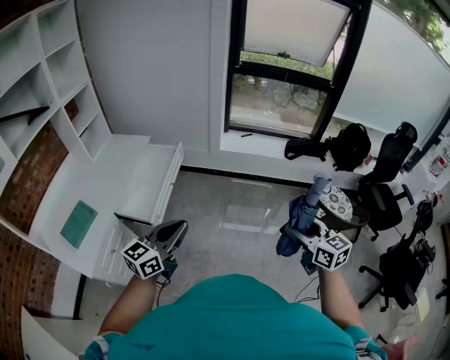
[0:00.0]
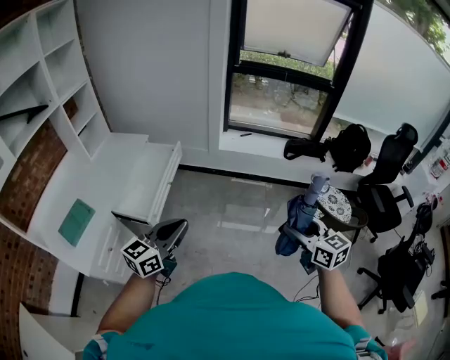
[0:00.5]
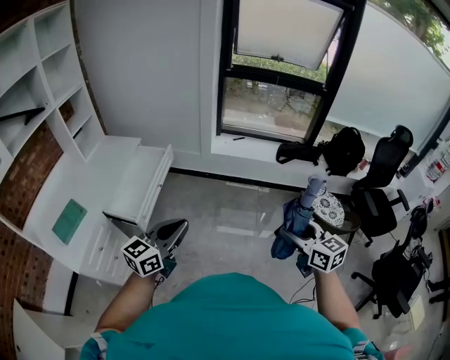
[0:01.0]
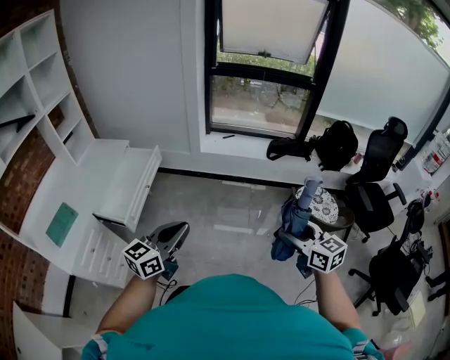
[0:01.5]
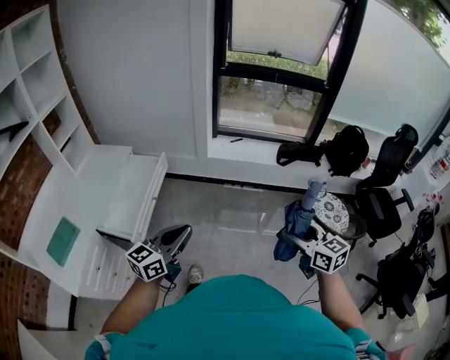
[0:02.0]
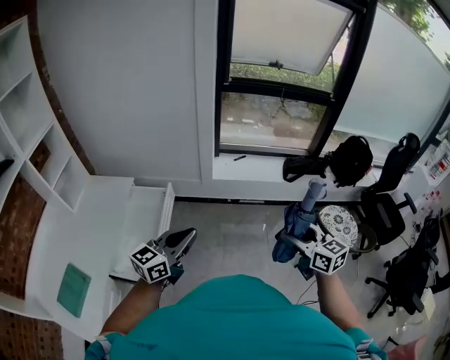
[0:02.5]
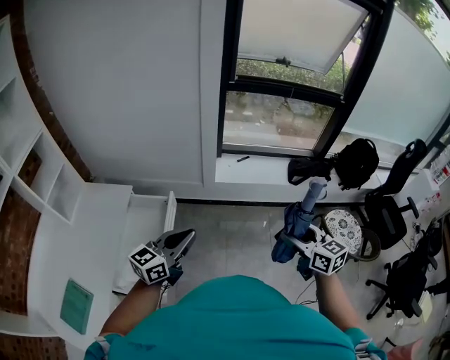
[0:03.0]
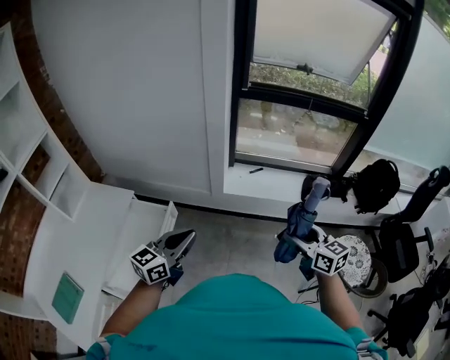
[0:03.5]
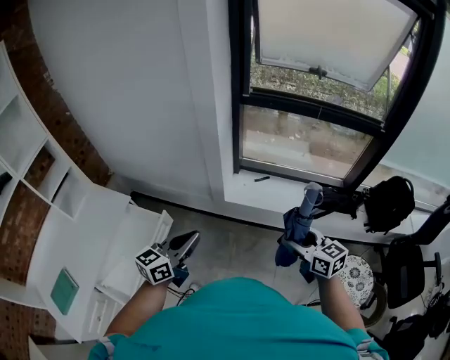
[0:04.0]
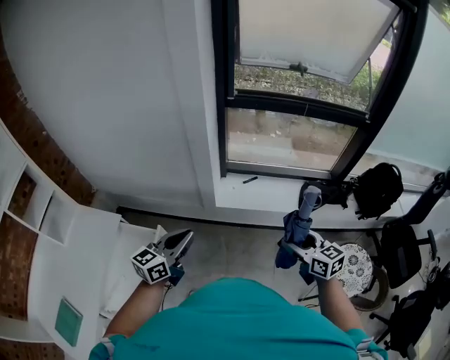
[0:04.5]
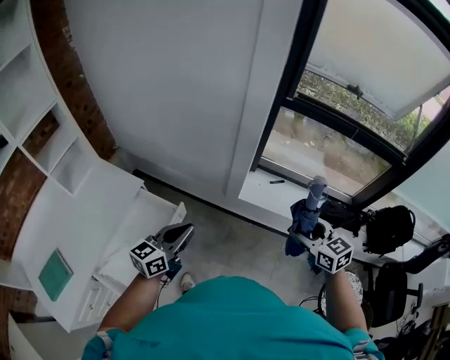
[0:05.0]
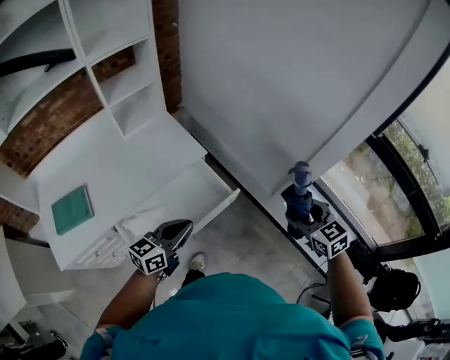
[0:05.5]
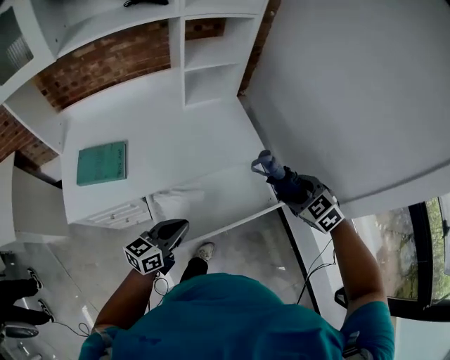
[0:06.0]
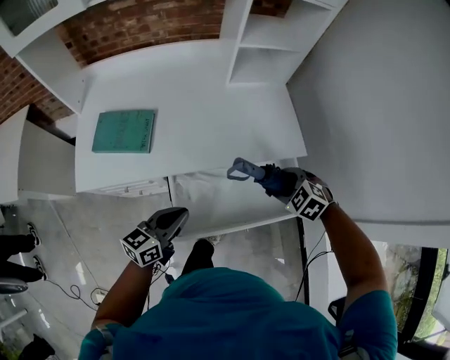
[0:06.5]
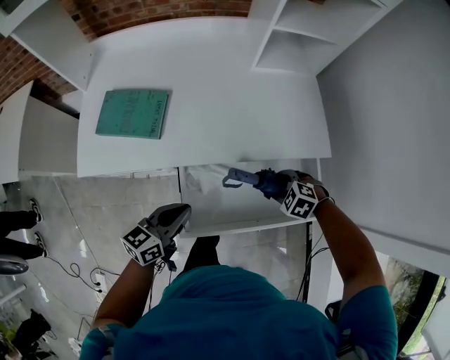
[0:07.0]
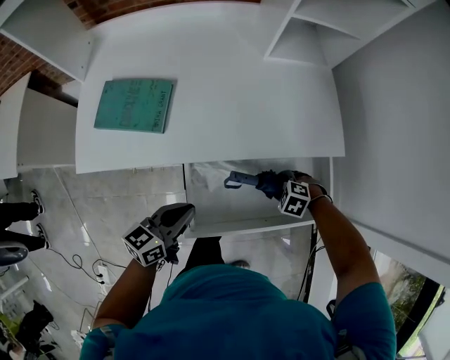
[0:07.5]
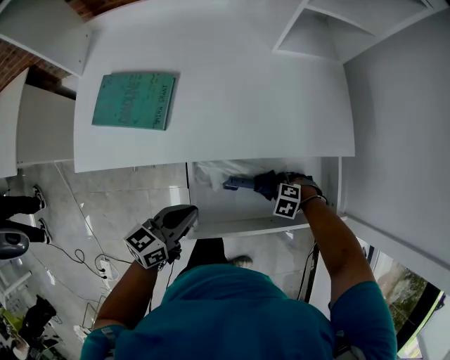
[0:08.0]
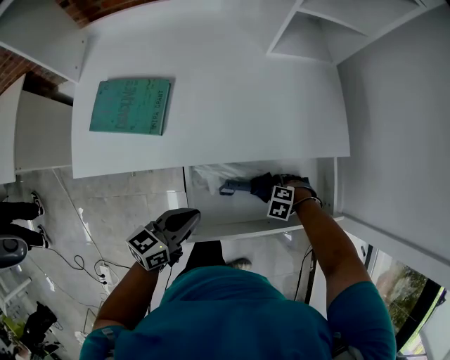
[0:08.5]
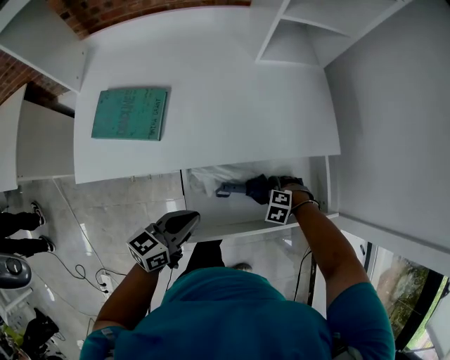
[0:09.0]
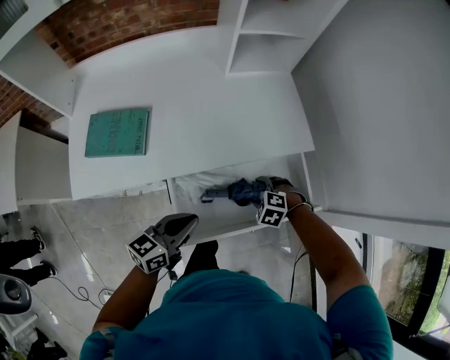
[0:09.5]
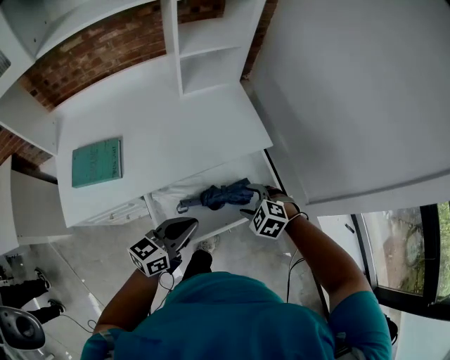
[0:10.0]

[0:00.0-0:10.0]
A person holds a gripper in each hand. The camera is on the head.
0:00.0 to 0:02.0: Both grippers move forward and to the right, some 10 cm.
0:02.0 to 0:04.0: The two grippers travel together, forward, some 40 cm.
0:04.0 to 0:06.0: Both grippers are carried roughly 50 cm. The left gripper rotates approximately 50 degrees. Meanwhile the right gripper tips its fingers downward by some 30 degrees.
0:06.0 to 0:08.0: The left gripper ends up some 15 cm from where it was, while the right gripper goes roughly 35 cm downward, and tilts its fingers roughly 40 degrees downward.
0:08.0 to 0:10.0: The left gripper changes place by some 20 cm, and swivels about 20 degrees. The right gripper travels upward by roughly 20 cm, and turns by about 40 degrees.

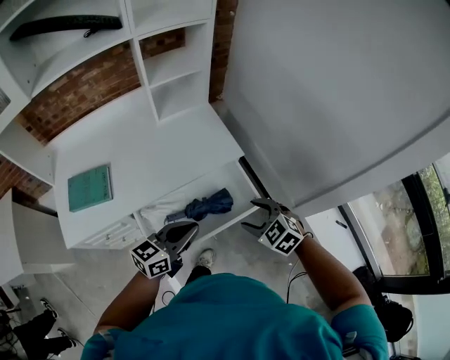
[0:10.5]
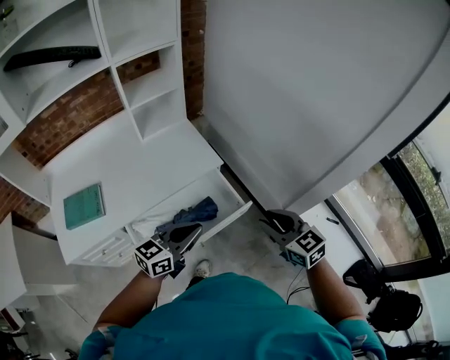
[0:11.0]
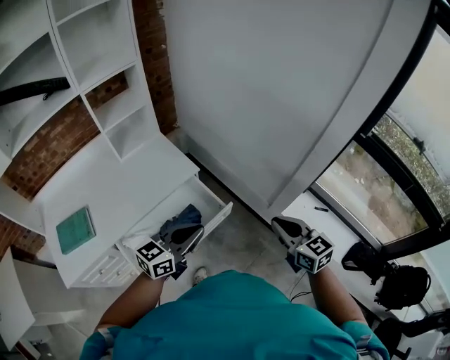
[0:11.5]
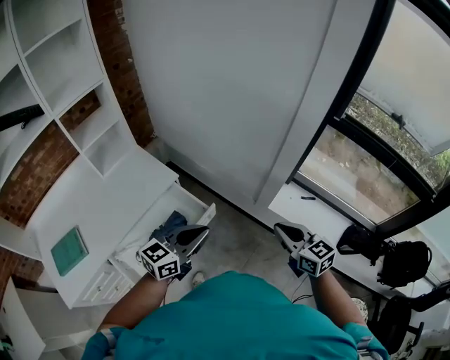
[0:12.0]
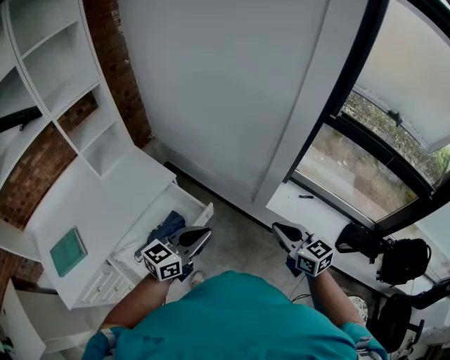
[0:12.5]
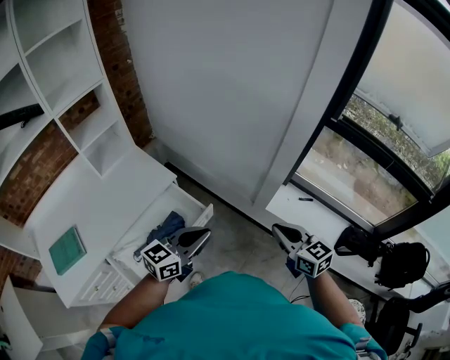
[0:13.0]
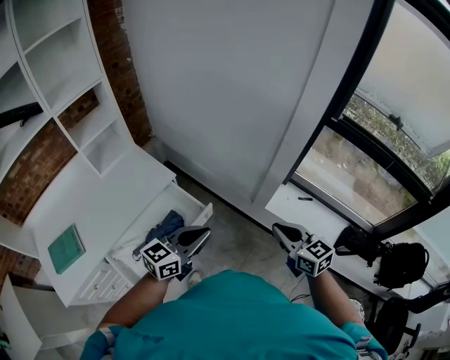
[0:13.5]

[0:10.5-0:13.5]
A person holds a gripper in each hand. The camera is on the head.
0:10.5 to 0:12.0: The left gripper shifts by some 25 cm, and swivels about 30 degrees, while the right gripper shifts by some 30 cm, points its fingers approximately 30 degrees further upward, and closes.
0:12.0 to 0:13.5: The grippers stay close to where they were, moving slightly.

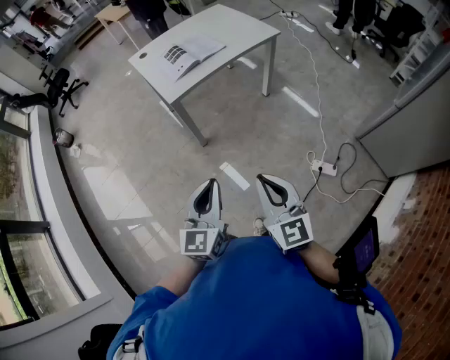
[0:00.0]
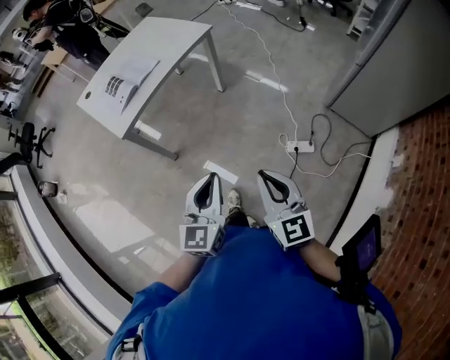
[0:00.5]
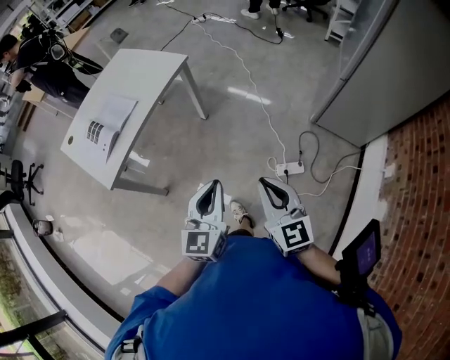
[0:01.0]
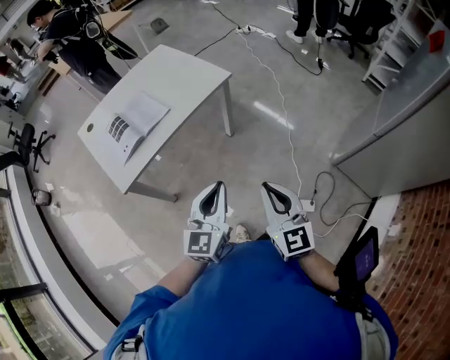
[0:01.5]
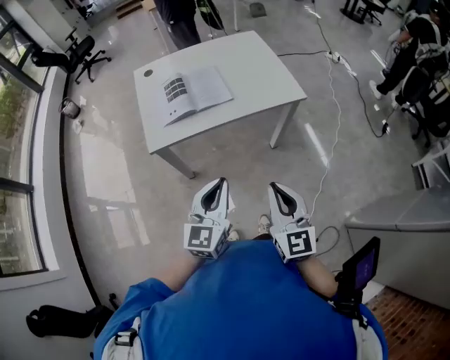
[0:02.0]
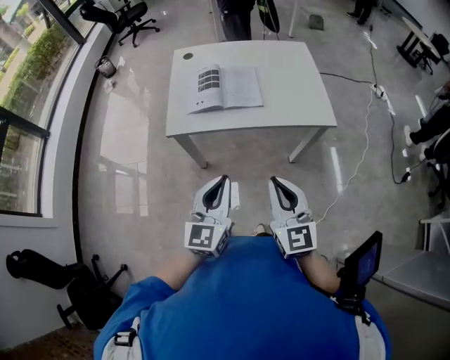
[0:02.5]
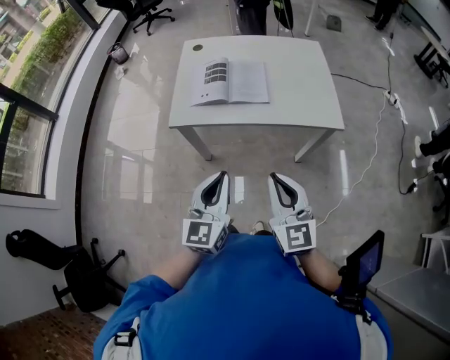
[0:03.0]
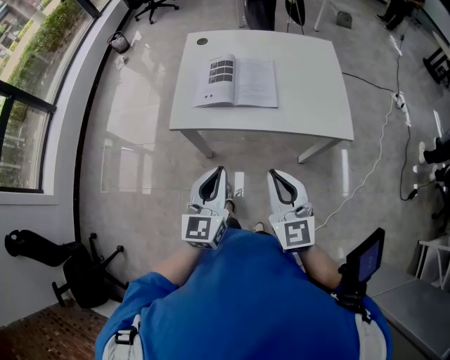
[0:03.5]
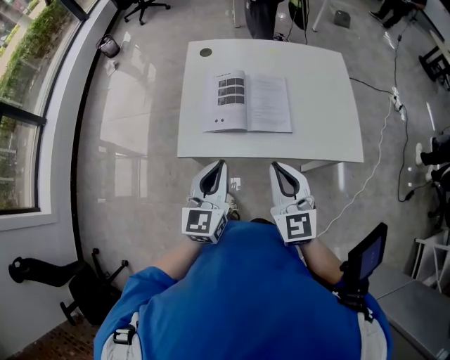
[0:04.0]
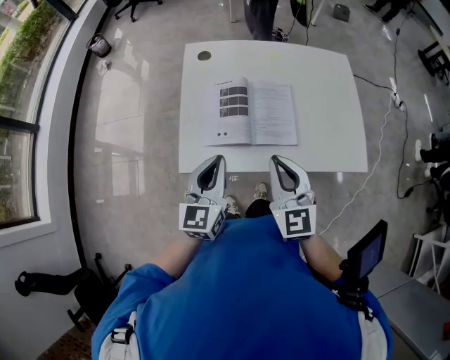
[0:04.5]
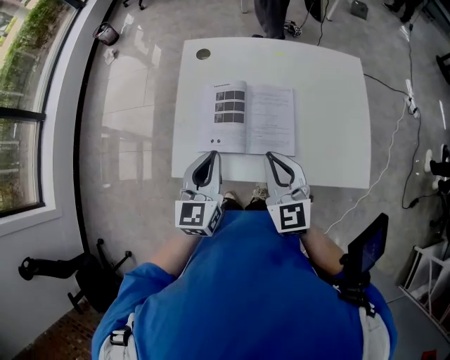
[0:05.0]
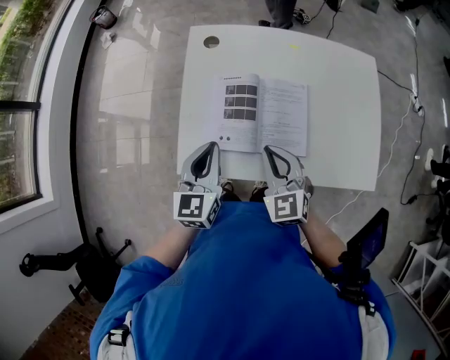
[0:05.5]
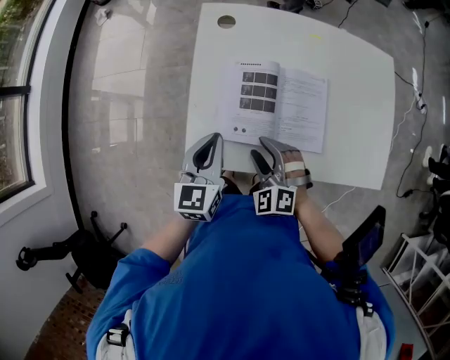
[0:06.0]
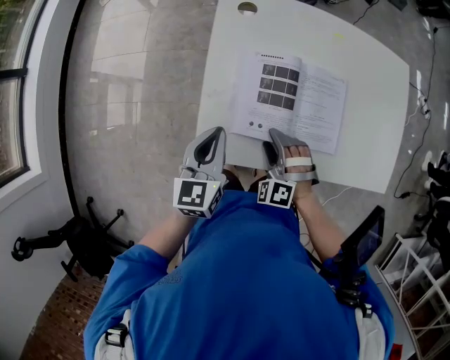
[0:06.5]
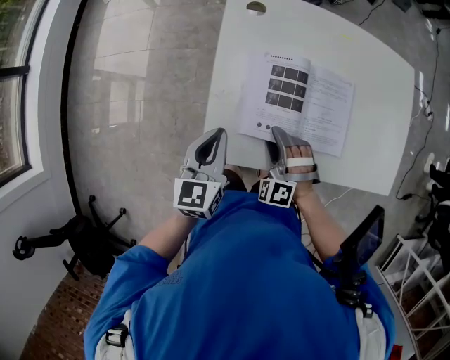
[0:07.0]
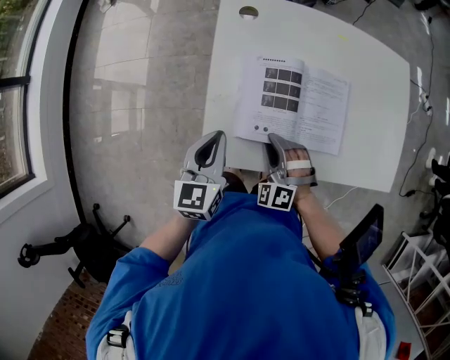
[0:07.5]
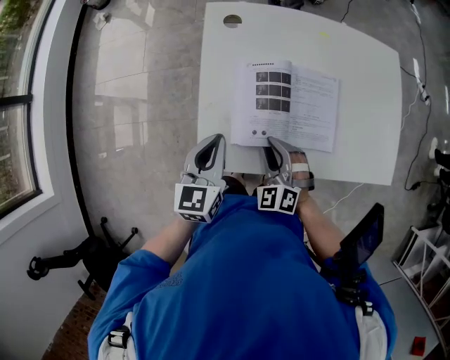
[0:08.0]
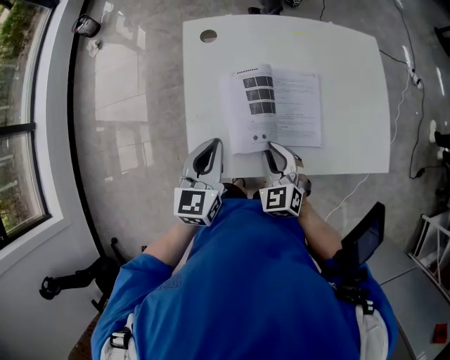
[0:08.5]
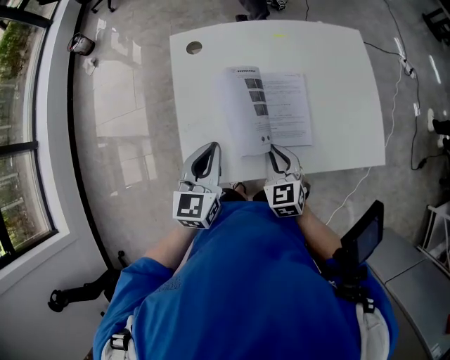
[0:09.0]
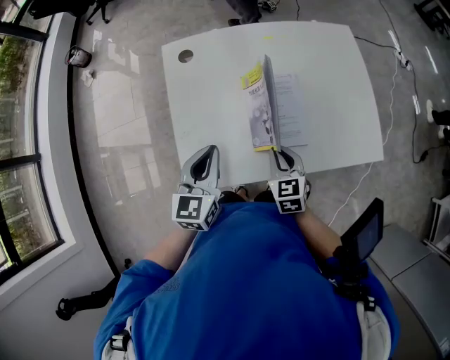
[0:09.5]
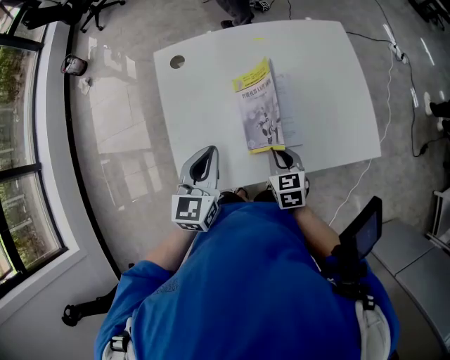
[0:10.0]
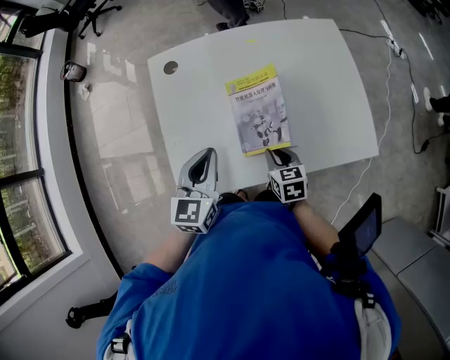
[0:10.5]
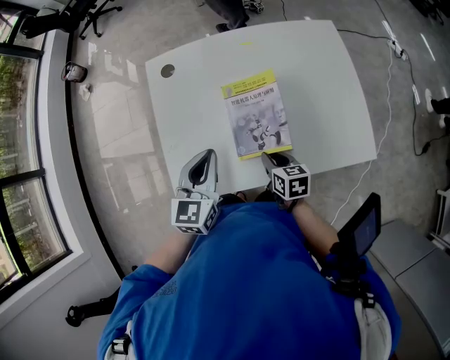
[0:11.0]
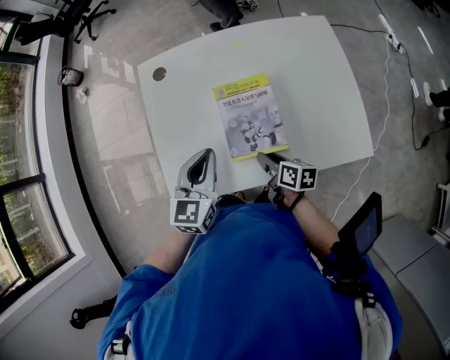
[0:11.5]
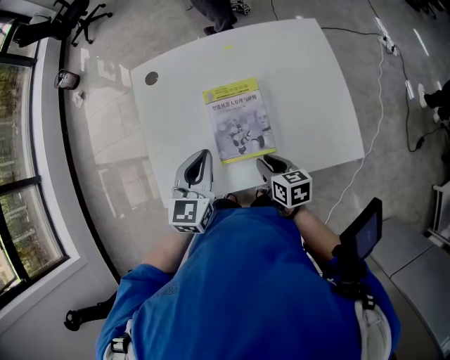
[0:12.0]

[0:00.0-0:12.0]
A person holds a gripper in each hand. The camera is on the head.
0:00.0 to 0:02.0: The pair of grippers is taken about 40 cm.
0:02.0 to 0:04.0: The right gripper ends up about 30 cm from where it was, and rotates roughly 20 degrees. Meanwhile the left gripper shifts by about 25 cm, and rotates about 20 degrees.
0:04.0 to 0:06.0: The right gripper moves downward, forward and to the left, some 25 cm, changes its angle by approximately 50 degrees, and opens its fingers, while the left gripper travels forward and downward by roughly 20 cm.
0:06.0 to 0:08.0: The right gripper closes its fingers.
0:08.0 to 0:10.0: The grippers both shift to the right by some 15 cm. The right gripper rotates around the line of its fingers by roughly 60 degrees, clockwise from behind.
0:10.0 to 0:12.0: The grippers both shift to the right by about 5 cm. The right gripper turns by some 30 degrees.

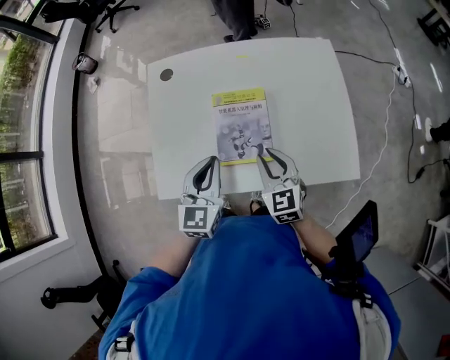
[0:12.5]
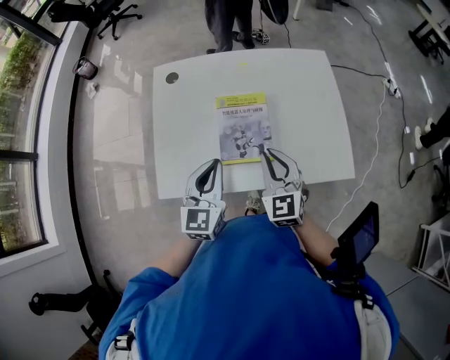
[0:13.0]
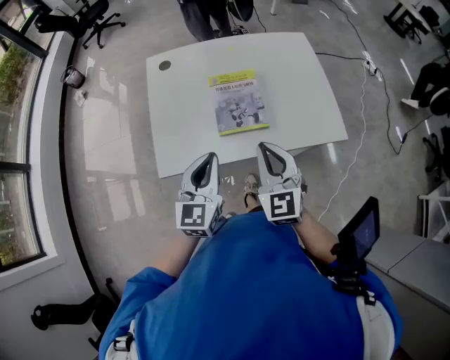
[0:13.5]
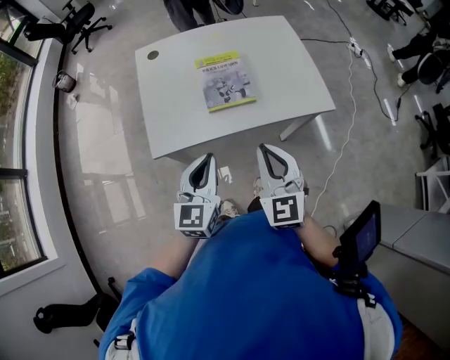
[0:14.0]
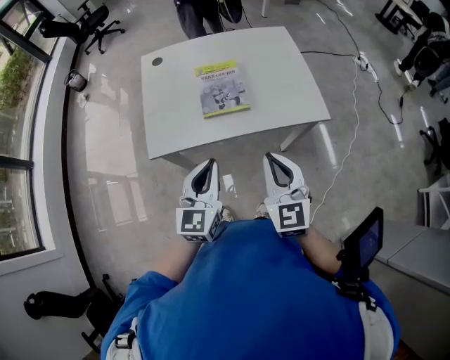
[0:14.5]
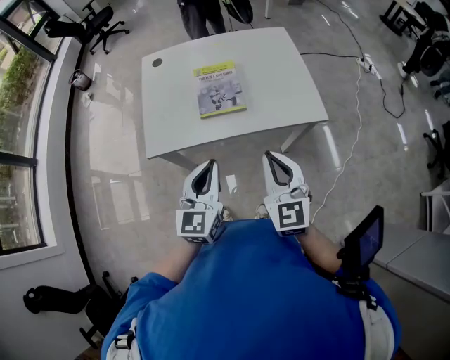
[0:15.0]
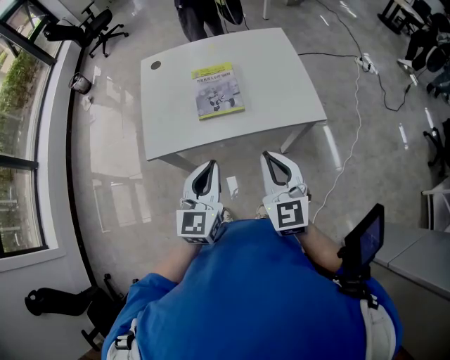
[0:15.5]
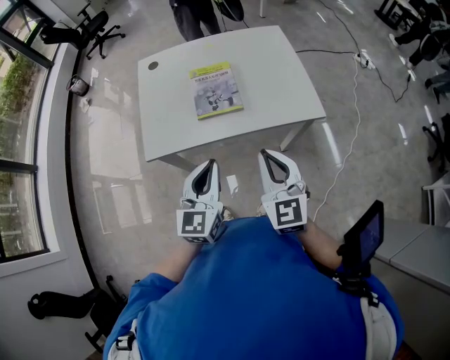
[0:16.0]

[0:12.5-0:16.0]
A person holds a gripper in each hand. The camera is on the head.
0:12.5 to 0:14.5: The left gripper is displaced backward by some 25 cm. Meanwhile the right gripper moves backward and upward, about 30 cm.
0:14.5 to 0:16.0: The grippers stay close to where they were, moving slightly.
